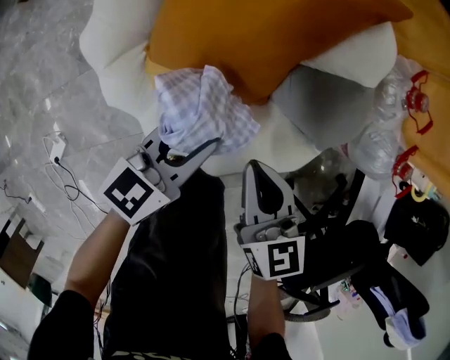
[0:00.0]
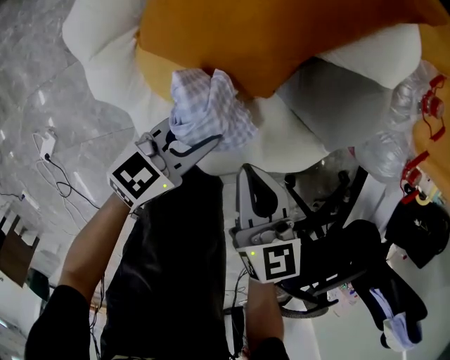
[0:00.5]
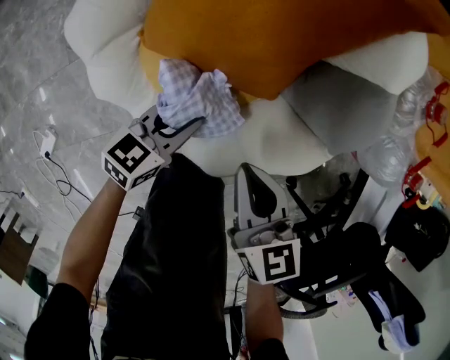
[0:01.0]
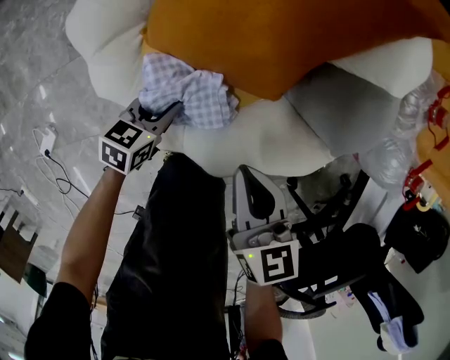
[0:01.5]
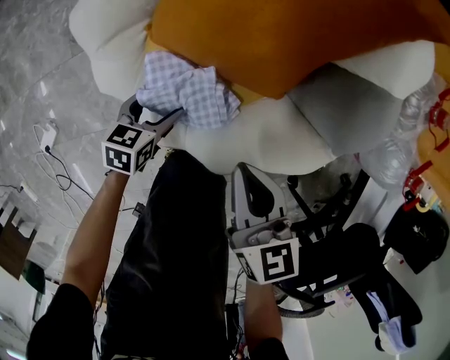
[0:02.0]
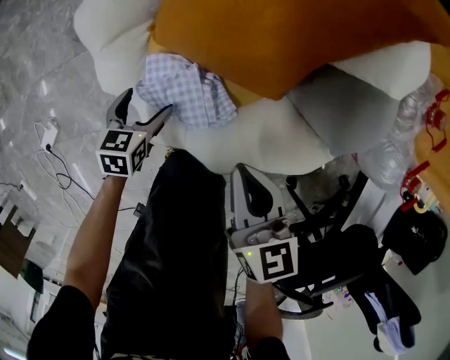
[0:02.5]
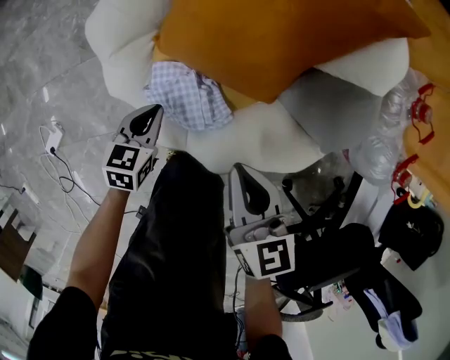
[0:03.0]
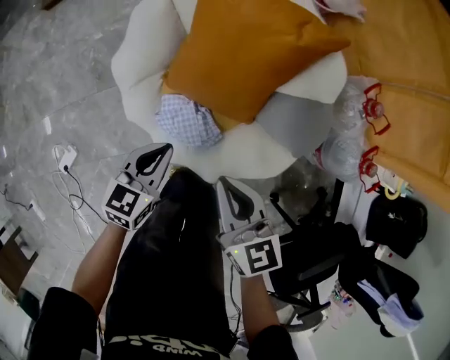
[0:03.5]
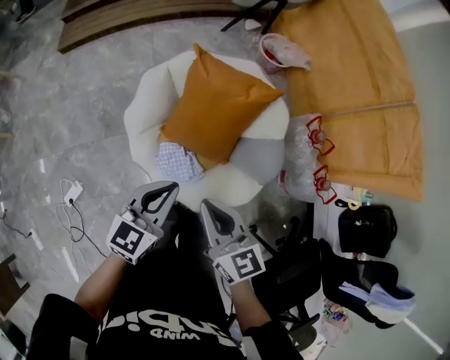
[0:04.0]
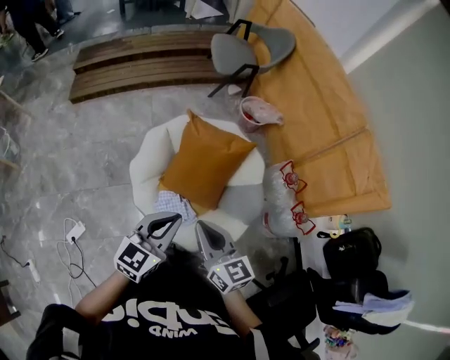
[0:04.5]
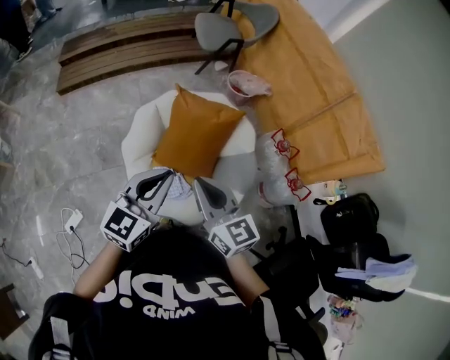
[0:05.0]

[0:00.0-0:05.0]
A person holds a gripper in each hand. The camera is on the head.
0:00.0 to 0:02.5: The right gripper is displaced downward by some 5 cm; the left gripper heads downward and to the left, covering some 30 cm, swivels about 40 degrees, and opens up.
0:02.5 to 0:05.0: The two grippers go approximately 60 cm upward. The right gripper swivels some 30 degrees; the left gripper angles its fingers upward, by about 50 degrees, and closes its fingers.

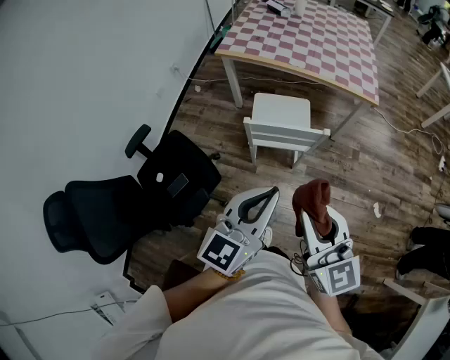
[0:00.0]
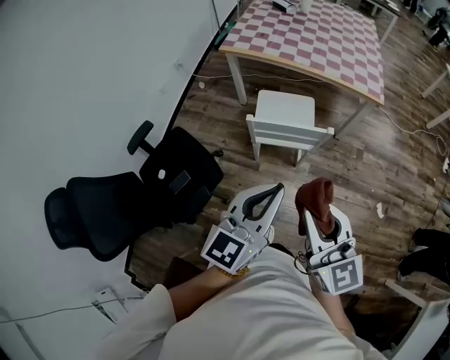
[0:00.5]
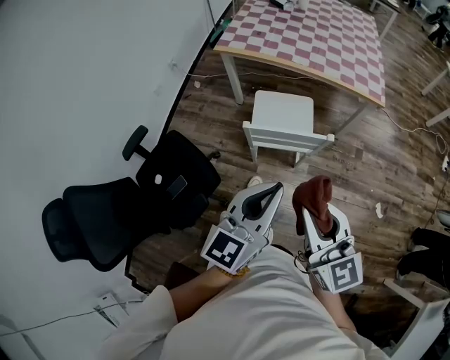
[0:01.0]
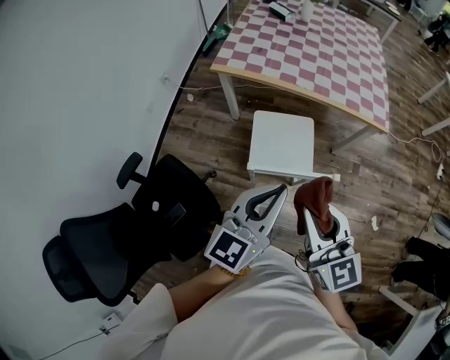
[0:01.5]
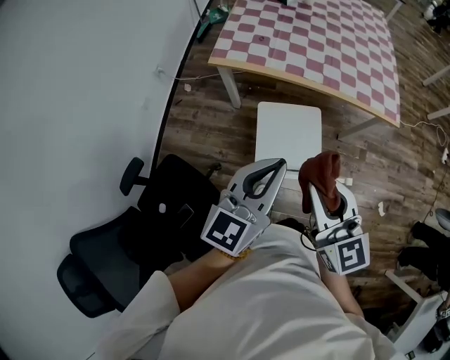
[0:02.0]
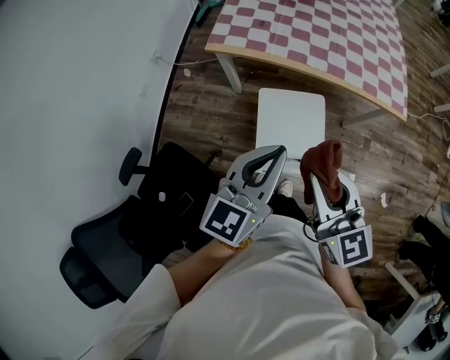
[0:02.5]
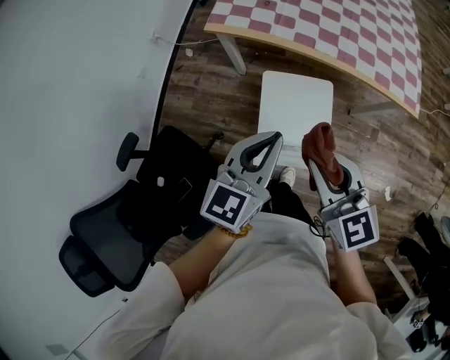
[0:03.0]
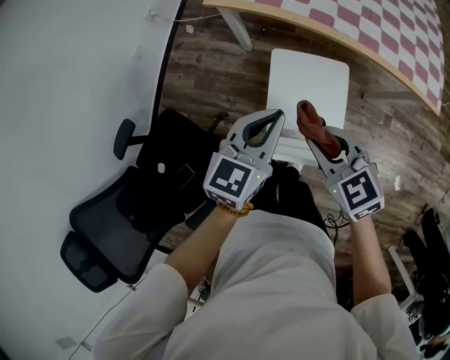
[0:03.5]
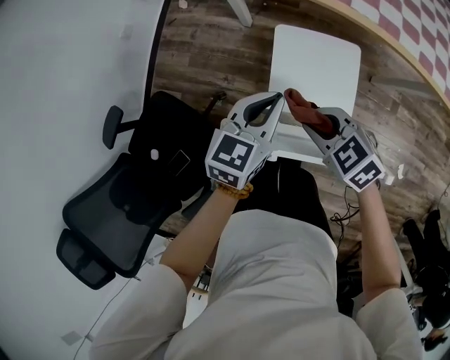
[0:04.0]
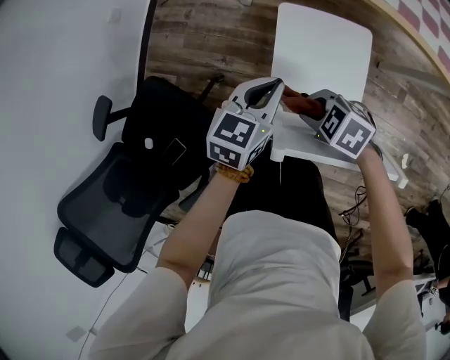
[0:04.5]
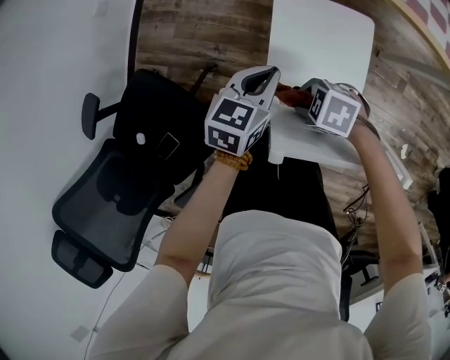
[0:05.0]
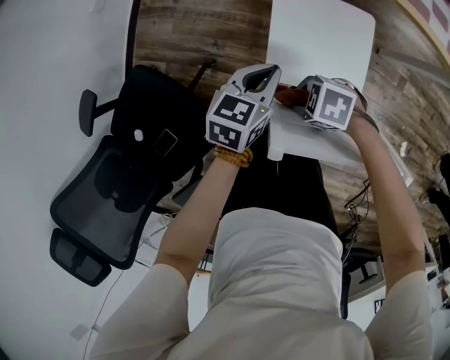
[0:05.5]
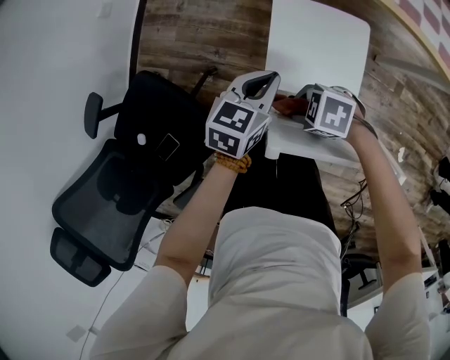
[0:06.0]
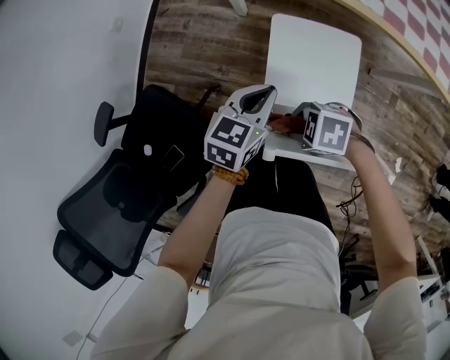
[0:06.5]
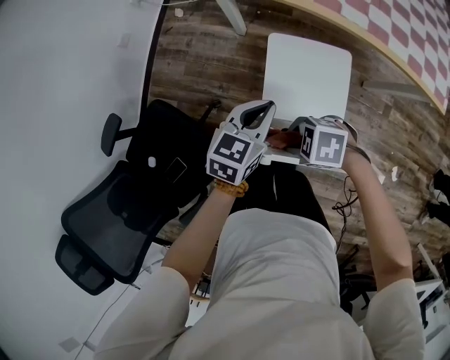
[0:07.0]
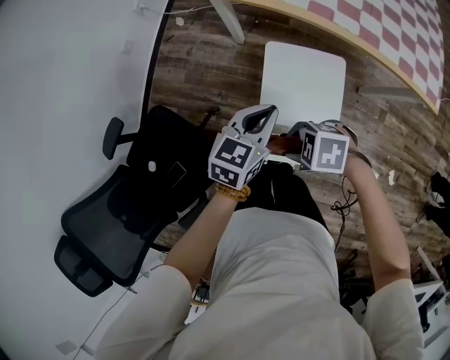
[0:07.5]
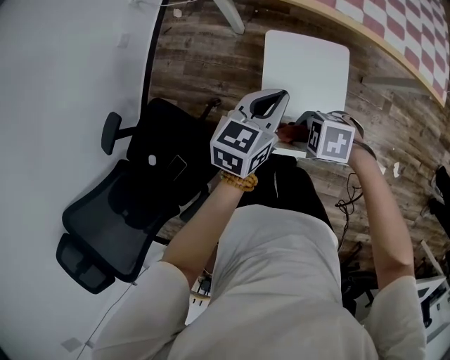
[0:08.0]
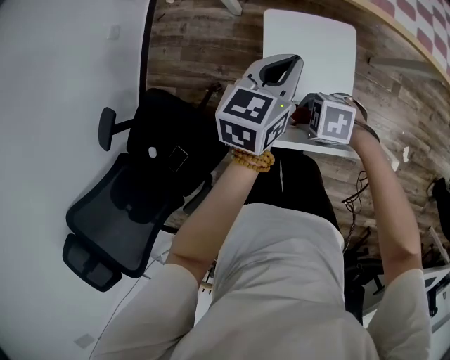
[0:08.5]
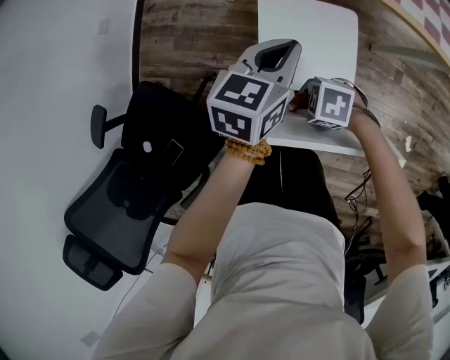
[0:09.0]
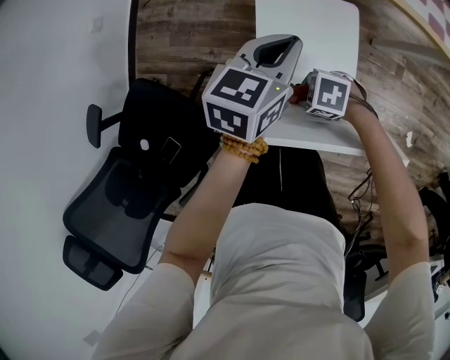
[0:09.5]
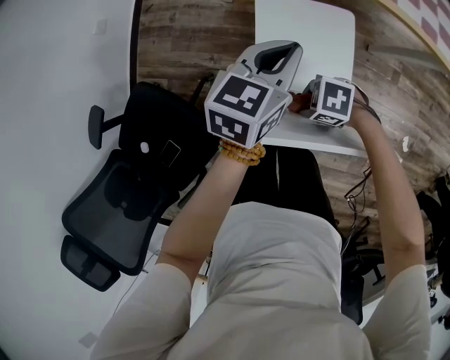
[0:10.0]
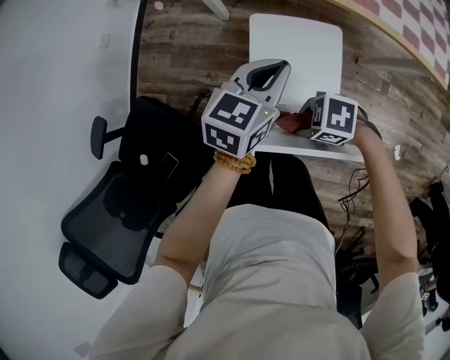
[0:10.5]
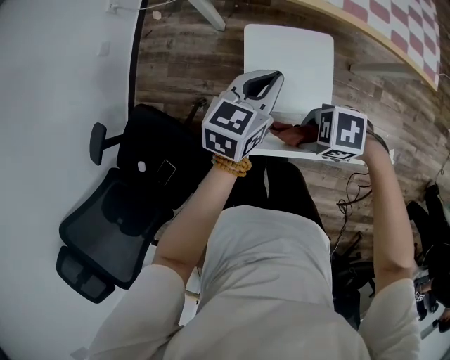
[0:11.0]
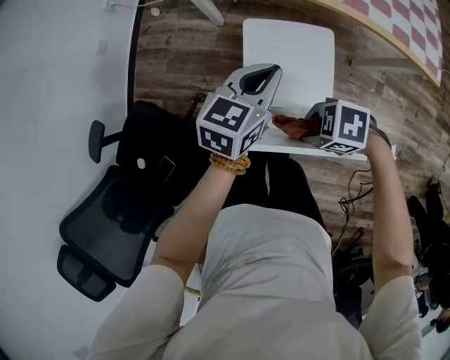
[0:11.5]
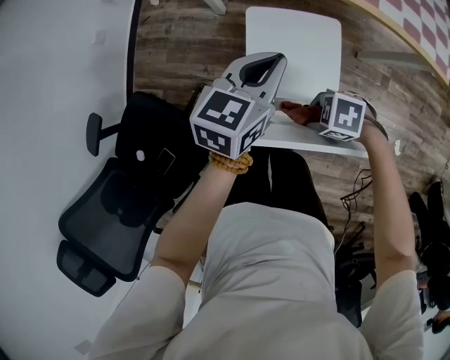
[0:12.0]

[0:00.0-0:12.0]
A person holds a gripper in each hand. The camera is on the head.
0:00.0 to 0:02.0: Both grippers travel together forward, about 30 cm.
0:02.0 to 0:04.0: The two grippers go approximately 30 cm downward. The right gripper tips its fingers downward by about 40 degrees; the left gripper changes its angle by roughly 20 degrees.
0:04.0 to 0:06.0: Both grippers travel together downward, roughly 15 cm. The right gripper rotates some 40 degrees.
0:06.0 to 0:08.0: Both grippers move upward, some 10 cm.
0:08.0 to 0:10.0: The right gripper is displaced downward by approximately 10 cm; the left gripper shifts by about 5 cm.

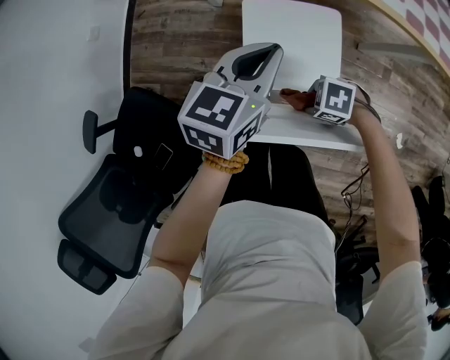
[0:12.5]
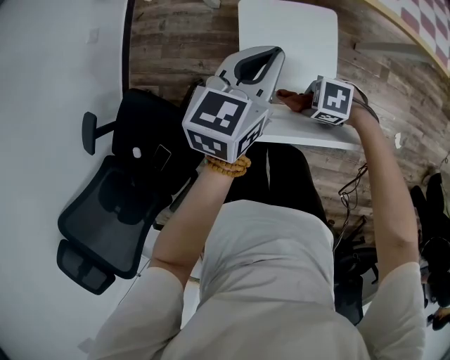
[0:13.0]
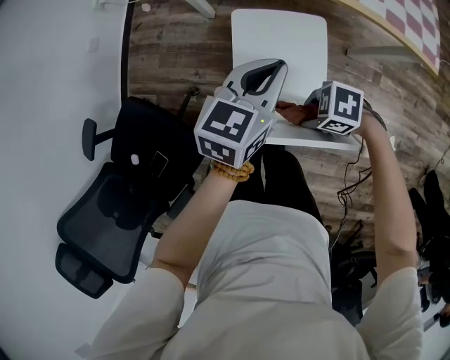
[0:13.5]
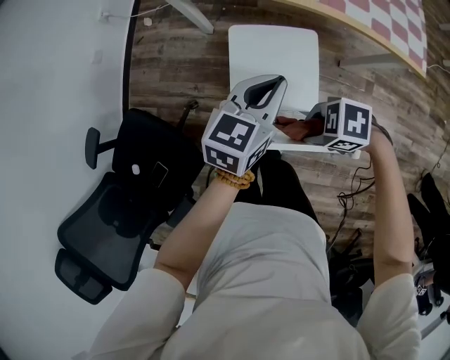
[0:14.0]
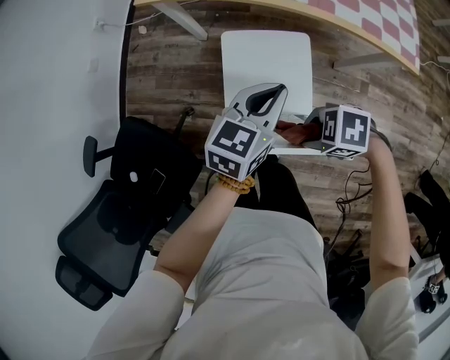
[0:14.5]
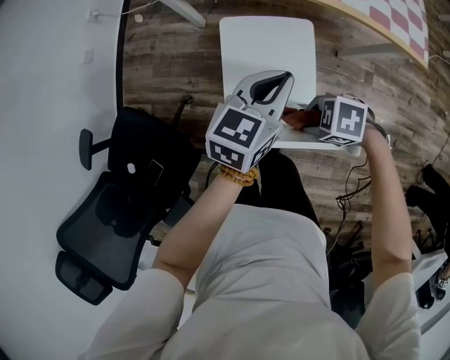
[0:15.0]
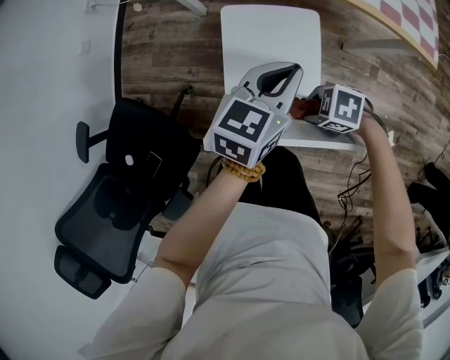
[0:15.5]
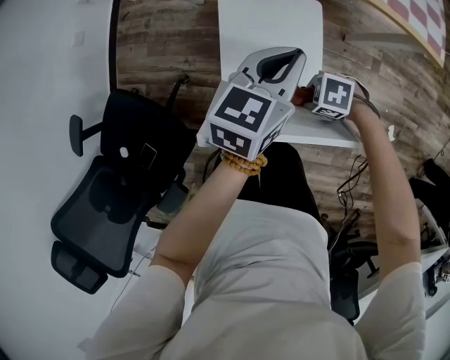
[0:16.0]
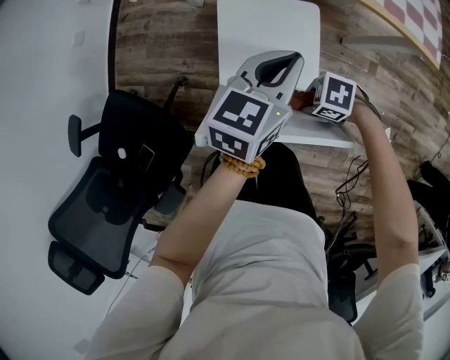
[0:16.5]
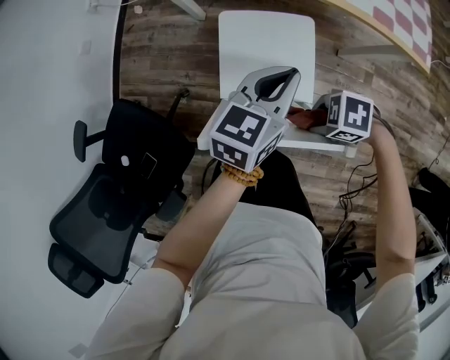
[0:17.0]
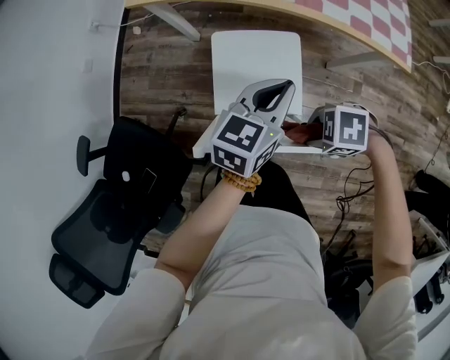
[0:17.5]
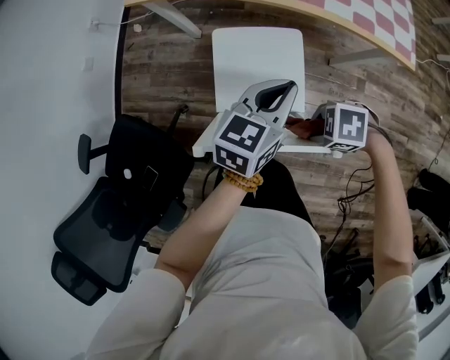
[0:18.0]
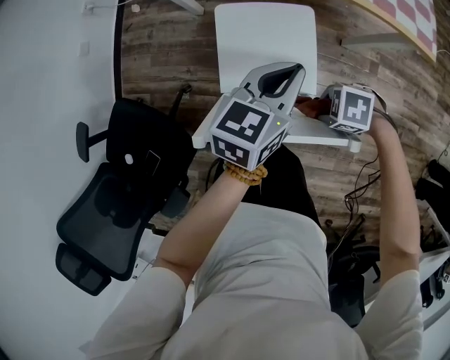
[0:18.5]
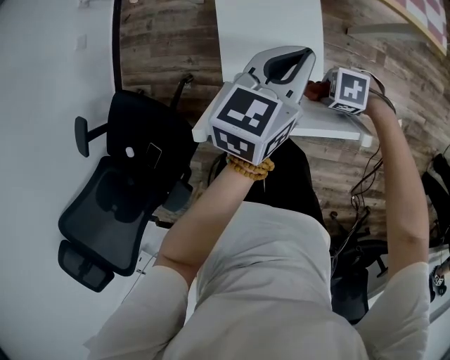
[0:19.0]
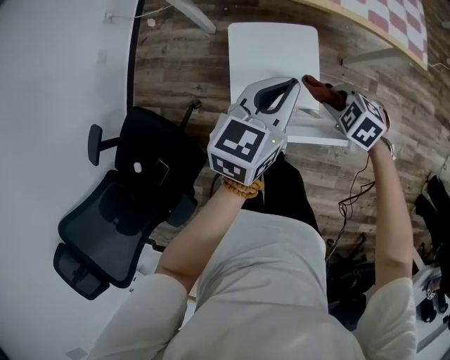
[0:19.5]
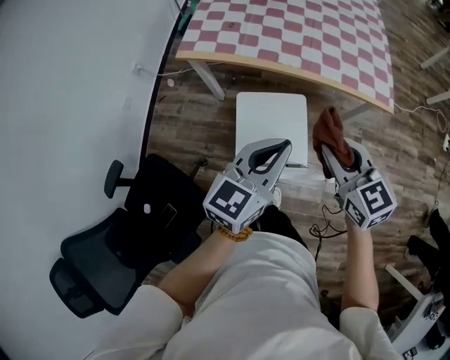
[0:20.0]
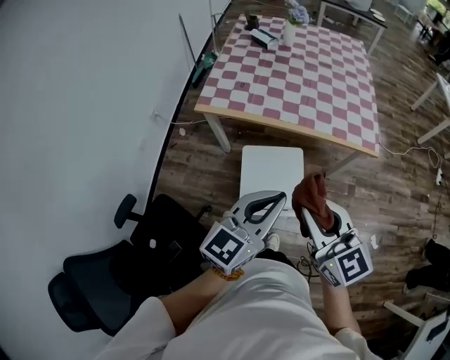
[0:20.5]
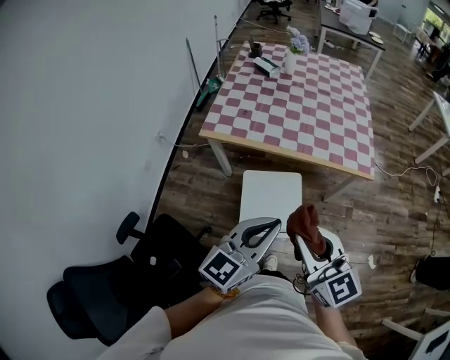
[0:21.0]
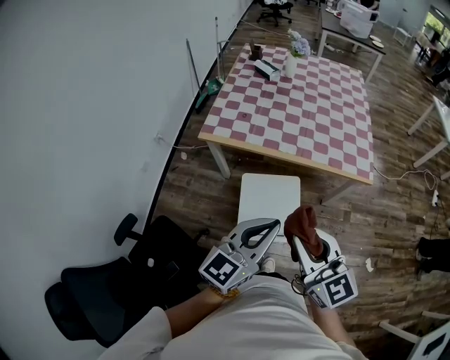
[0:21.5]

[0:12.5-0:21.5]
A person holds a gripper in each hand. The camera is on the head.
0:12.5 to 0:14.5: The right gripper travels upward by some 15 cm. The left gripper shifts by some 10 cm.
0:14.5 to 0:17.0: The right gripper shifts roughly 5 cm downward.
0:17.0 to 0:19.5: The right gripper goes up and down, some 15 cm each way, reversing 2 times, and changes its angle by about 40 degrees. The left gripper shifts by some 5 cm.
0:19.5 to 0:21.5: The right gripper moves upward, some 40 cm, and points its fingers roughly 60 degrees further upward. The left gripper travels upward by about 25 cm, and rotates some 20 degrees.

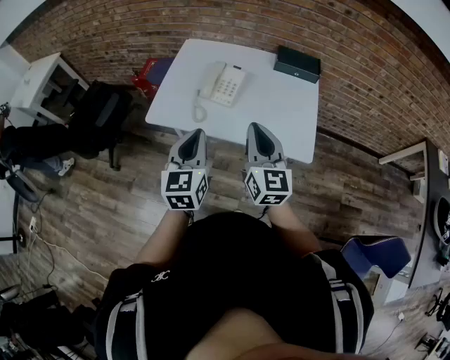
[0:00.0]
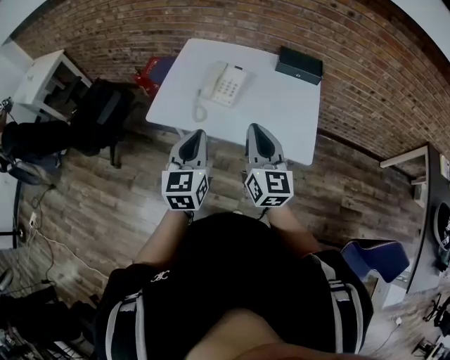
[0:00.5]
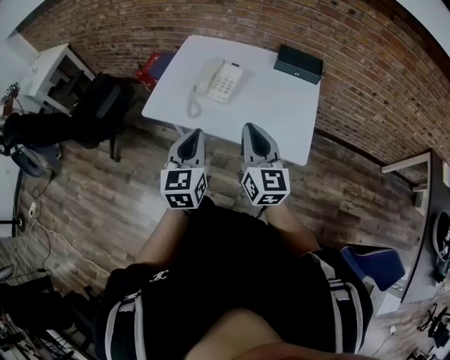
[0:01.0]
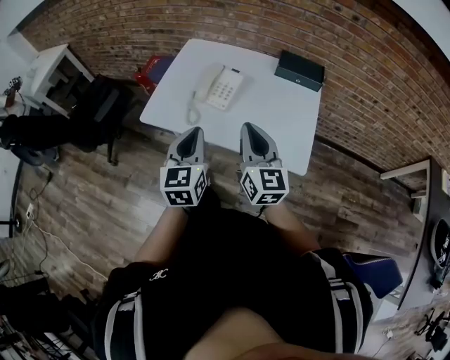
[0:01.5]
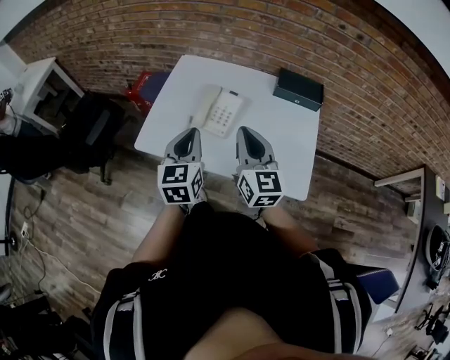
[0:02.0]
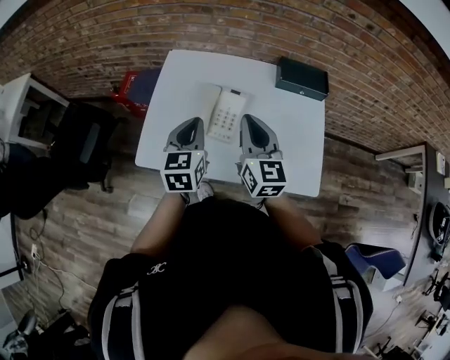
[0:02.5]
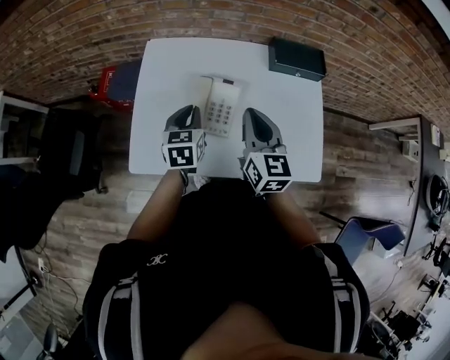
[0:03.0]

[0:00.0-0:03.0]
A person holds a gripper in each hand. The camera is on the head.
0:00.0 to 0:01.5: The left gripper shifts by approximately 5 cm.
0:01.5 to 0:03.0: The left gripper is displaced forward and downward by some 35 cm, and rotates some 30 degrees. The right gripper heads forward, covering some 25 cm, and turns by roughly 20 degrees.
